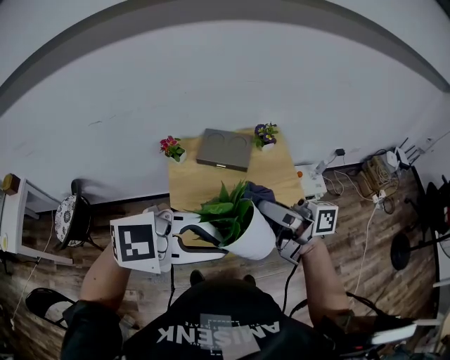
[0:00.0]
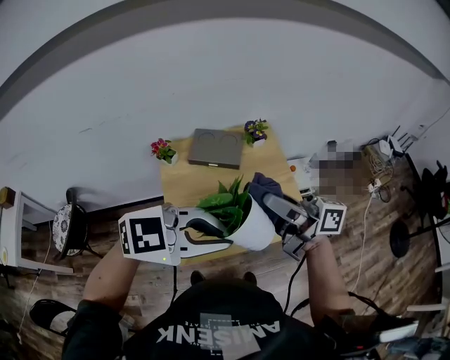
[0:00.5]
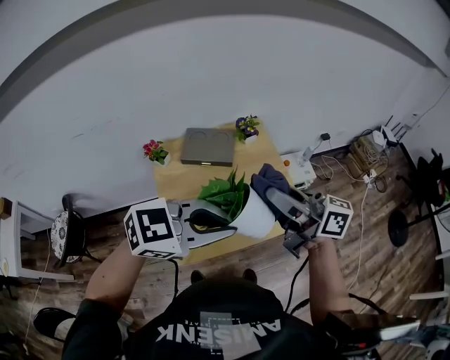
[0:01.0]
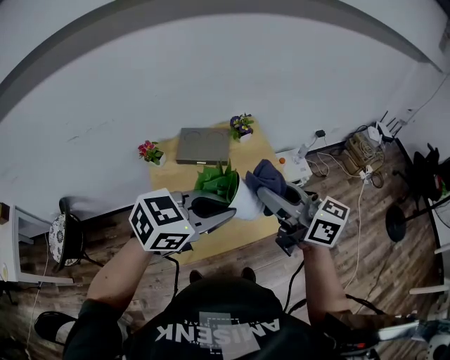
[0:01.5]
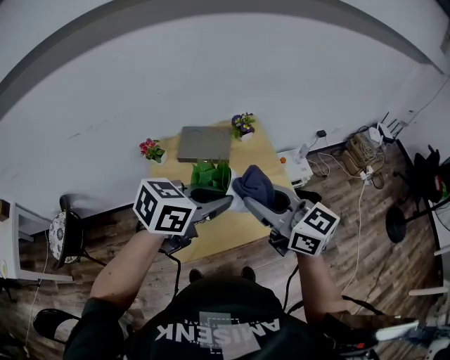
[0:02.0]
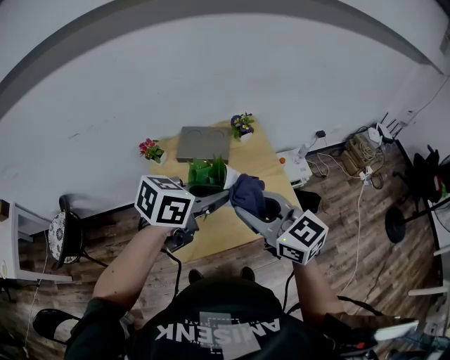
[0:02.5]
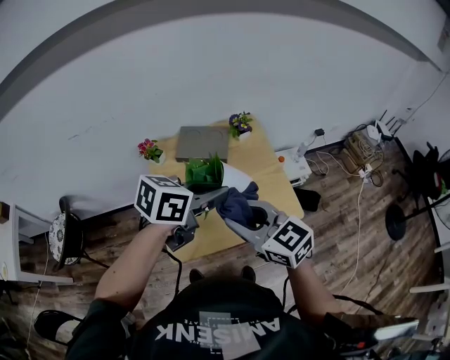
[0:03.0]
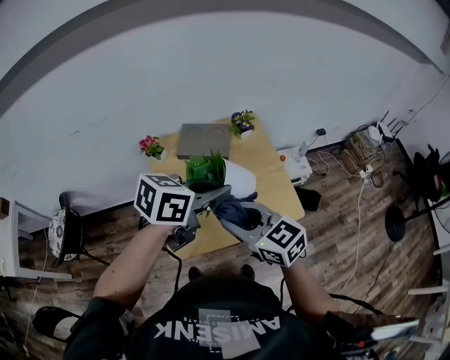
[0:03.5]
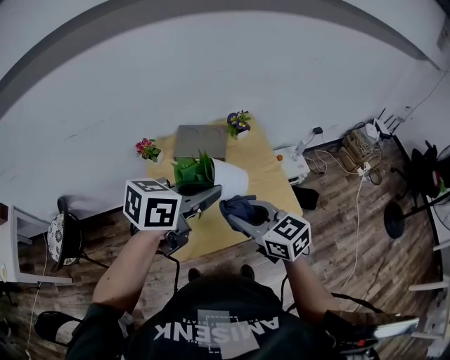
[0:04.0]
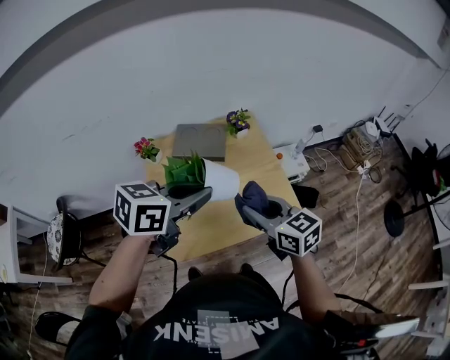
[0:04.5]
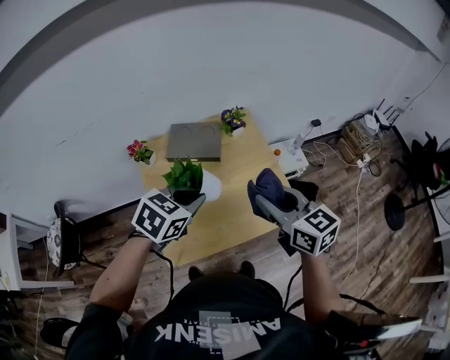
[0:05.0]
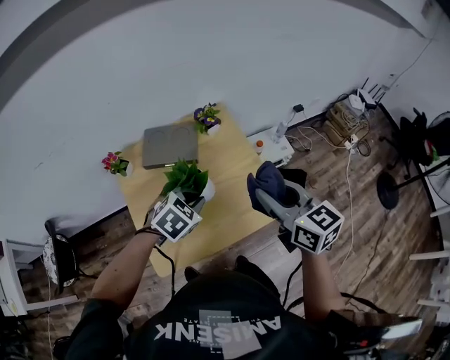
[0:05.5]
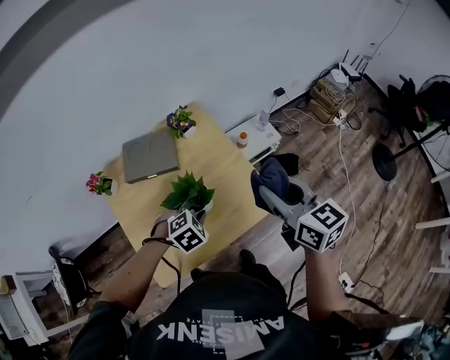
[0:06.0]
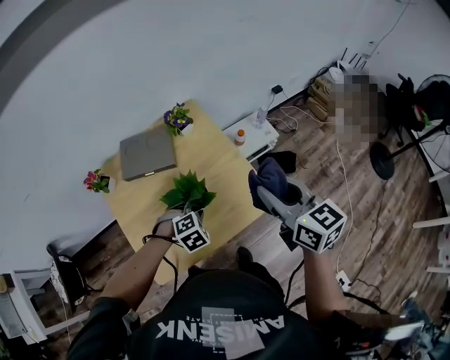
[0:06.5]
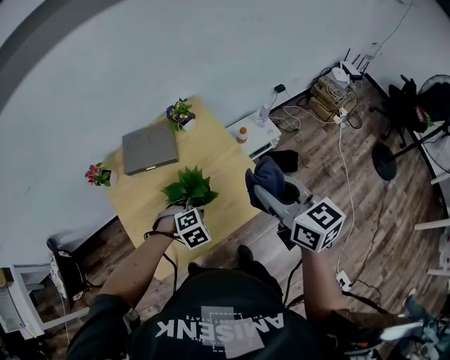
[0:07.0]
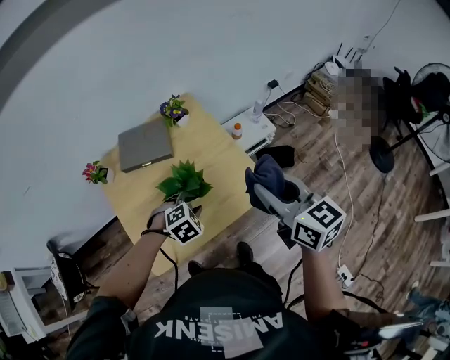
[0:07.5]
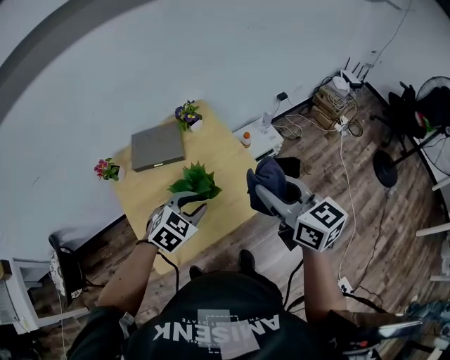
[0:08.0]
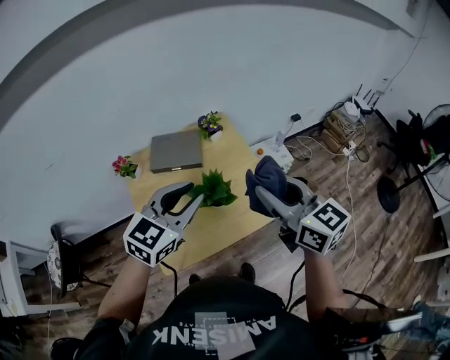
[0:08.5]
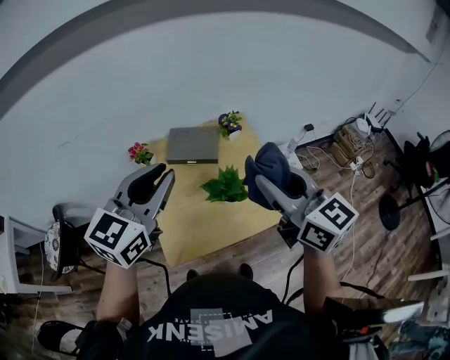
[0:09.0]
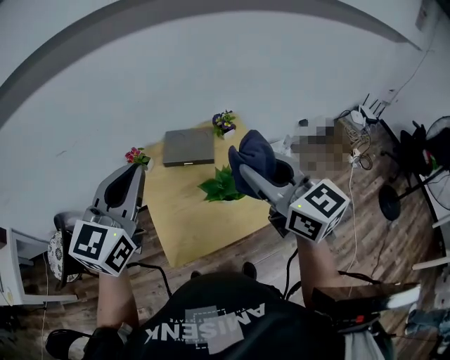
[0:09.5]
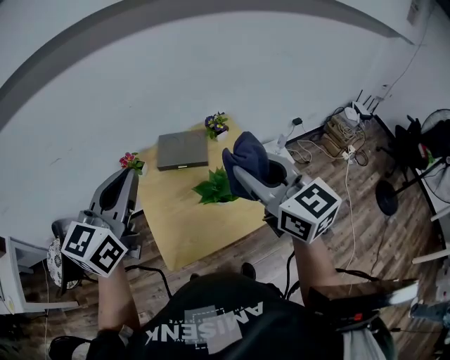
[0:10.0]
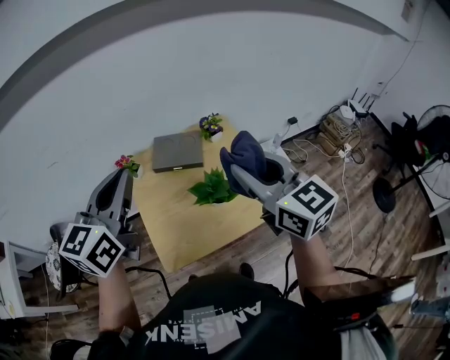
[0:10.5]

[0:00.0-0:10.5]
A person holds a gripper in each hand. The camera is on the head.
0:00.0 to 0:02.0: The right gripper turns by approximately 60 degrees. Meanwhile the left gripper moves about 15 cm, and twists some 40 degrees counterclockwise, seen from behind.
0:02.0 to 0:04.0: The right gripper heads downward, covering about 10 cm.
0:04.0 to 0:06.5: The right gripper moves to the right and forward, some 25 cm, and swivels roughly 30 degrees. Meanwhile the left gripper travels downward by approximately 30 cm, and points its fingers some 50 degrees further downward.
0:06.5 to 0:08.5: The right gripper is displaced upward, to the left and backward by approximately 15 cm; the left gripper travels upward by approximately 30 cm, angles its fingers upward, by some 50 degrees, and opens its fingers.
0:08.5 to 0:10.5: The left gripper travels to the left and upward by about 20 cm, swivels about 30 degrees, and closes its fingers, while the right gripper moves upward and to the left, approximately 10 cm.

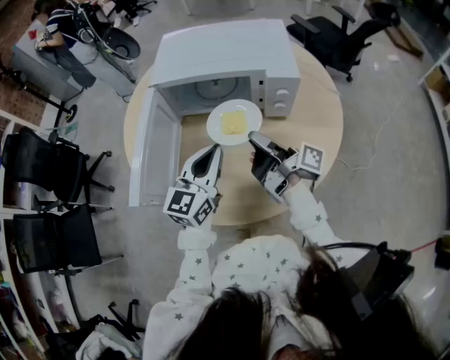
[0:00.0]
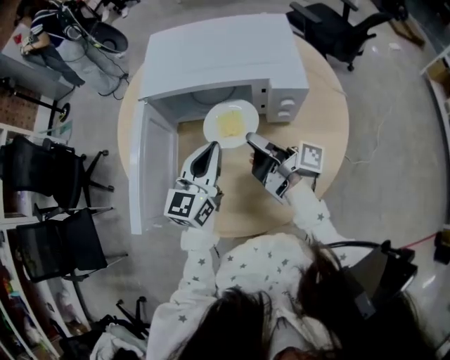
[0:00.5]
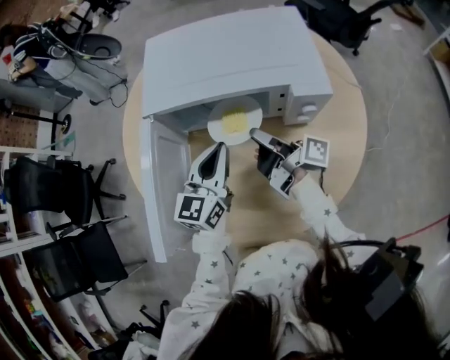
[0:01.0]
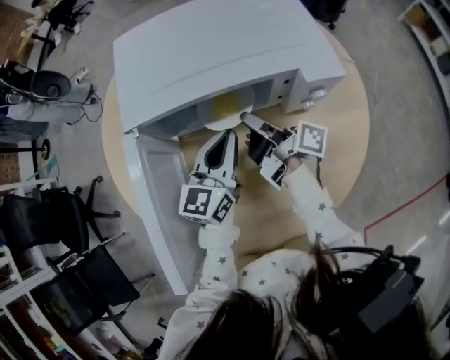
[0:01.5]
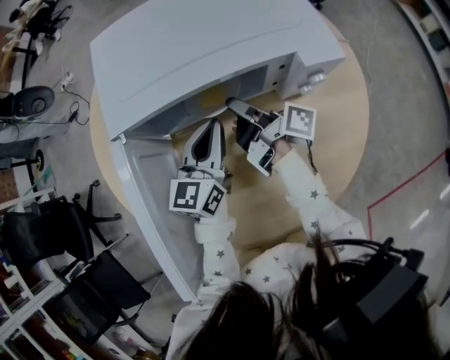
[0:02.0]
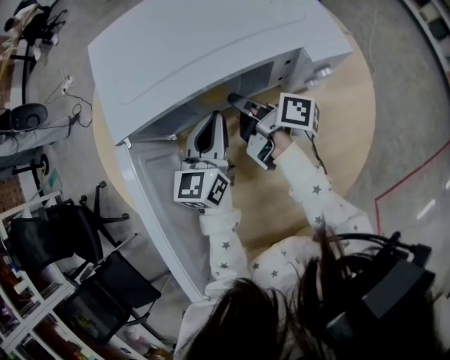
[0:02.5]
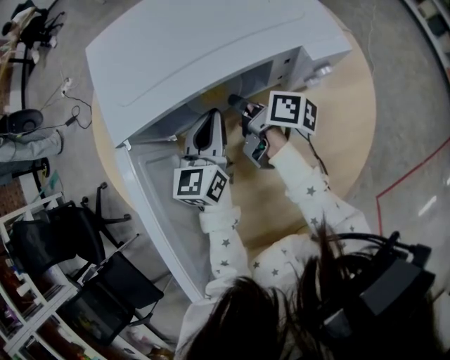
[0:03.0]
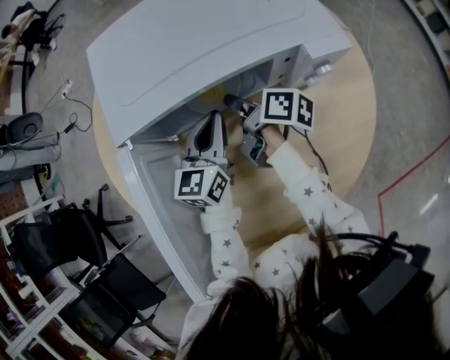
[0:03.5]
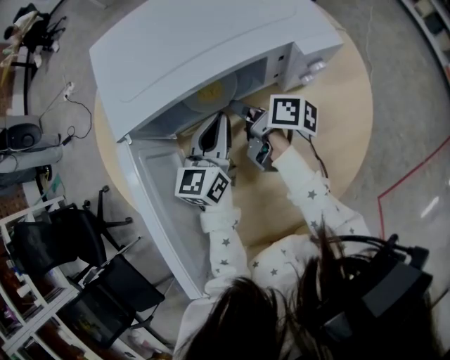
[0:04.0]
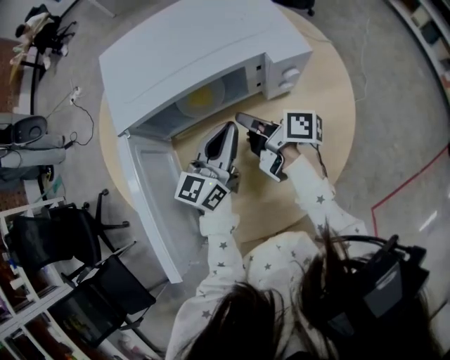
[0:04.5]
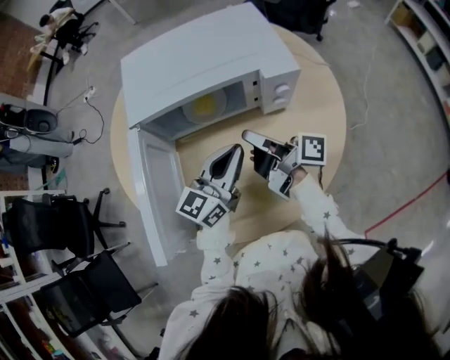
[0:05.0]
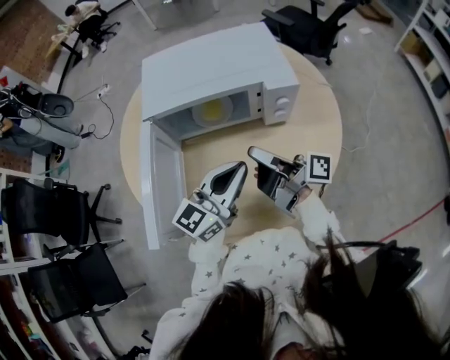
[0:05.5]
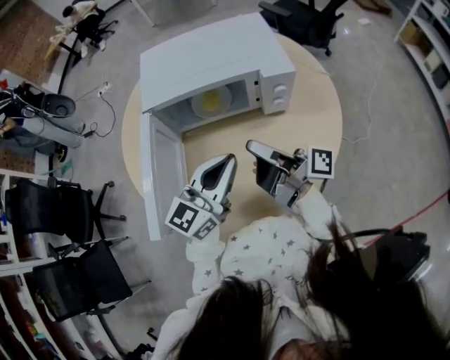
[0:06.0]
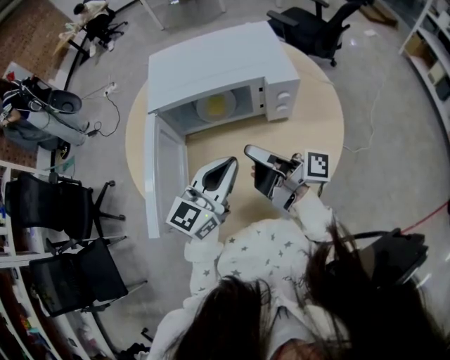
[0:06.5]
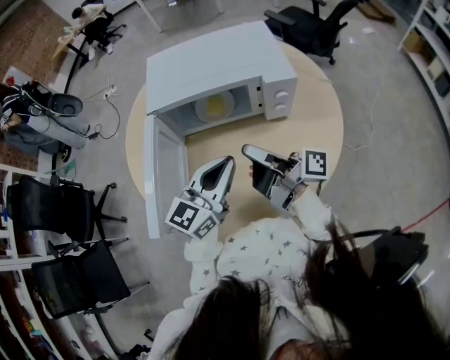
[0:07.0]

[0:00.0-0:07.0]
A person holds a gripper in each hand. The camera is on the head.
0:00.0 to 0:02.0: The left gripper moves approximately 20 cm.
0:03.5 to 0:05.0: The left gripper shifts by some 15 cm.
0:05.0 to 0:07.0: The left gripper changes place by about 10 cm.

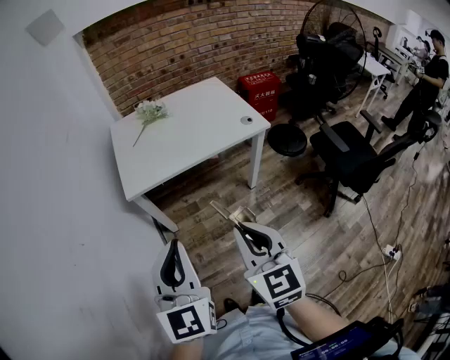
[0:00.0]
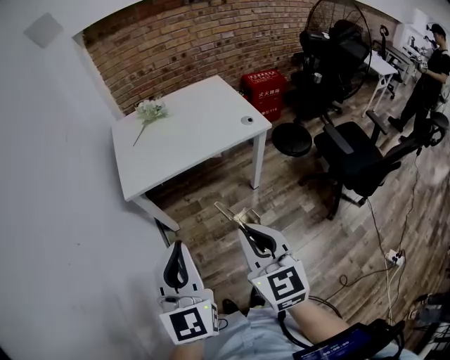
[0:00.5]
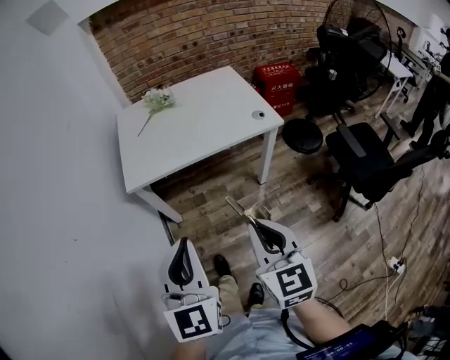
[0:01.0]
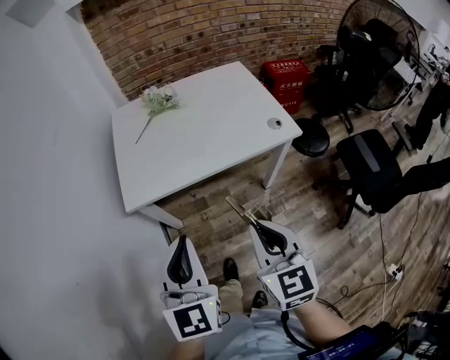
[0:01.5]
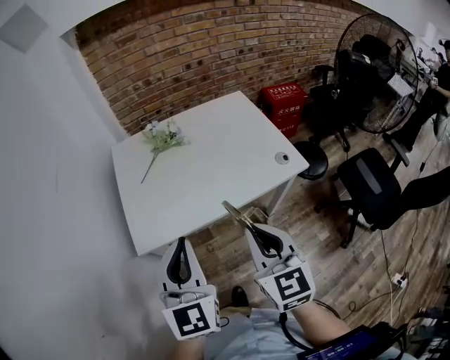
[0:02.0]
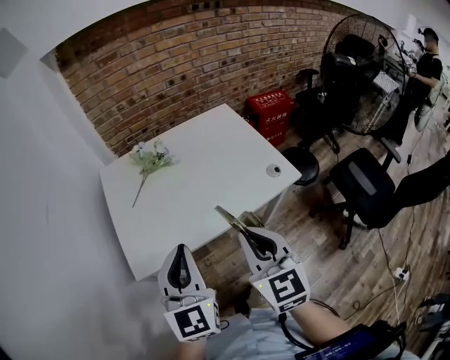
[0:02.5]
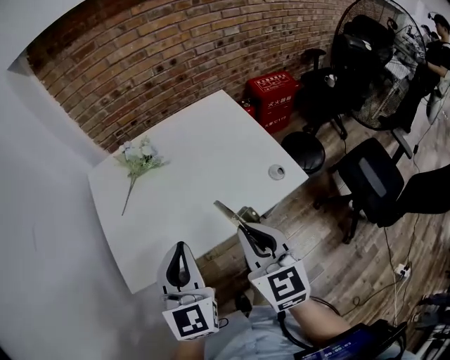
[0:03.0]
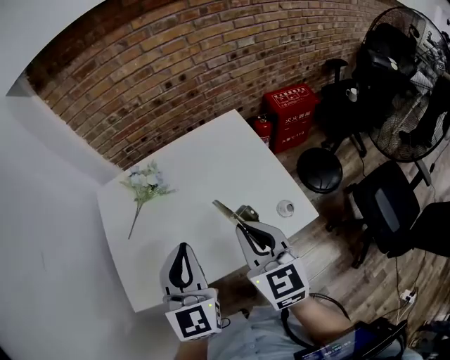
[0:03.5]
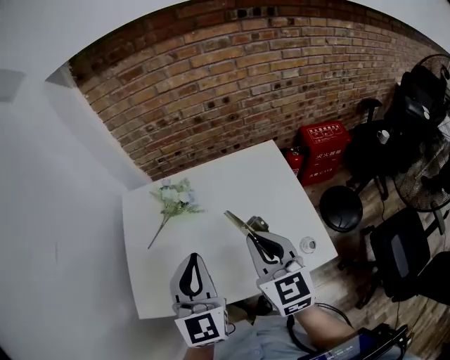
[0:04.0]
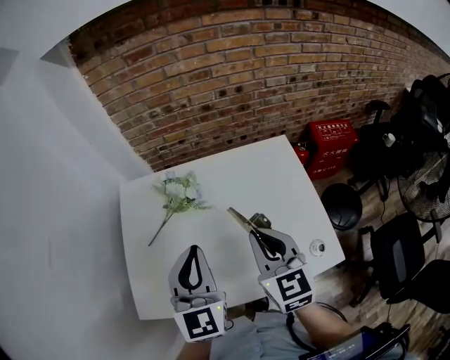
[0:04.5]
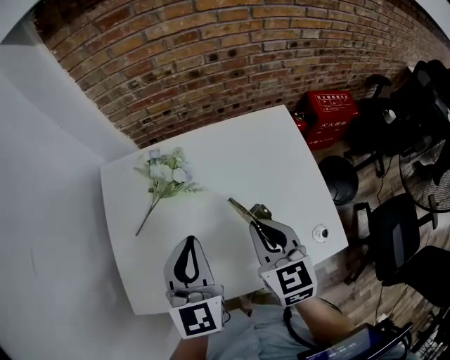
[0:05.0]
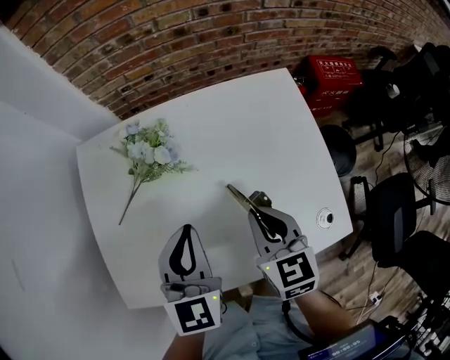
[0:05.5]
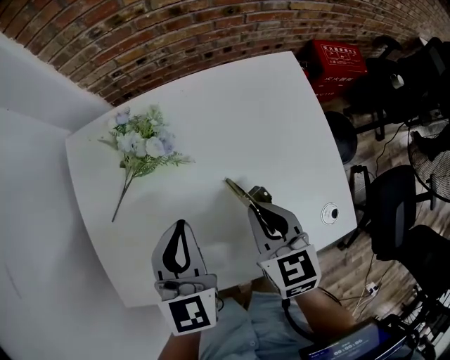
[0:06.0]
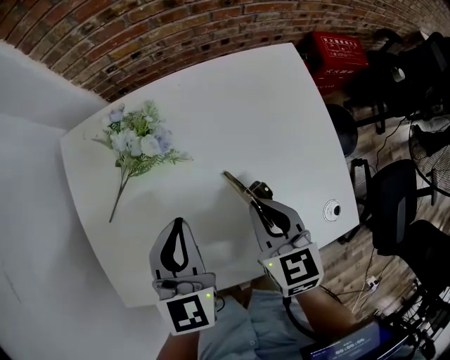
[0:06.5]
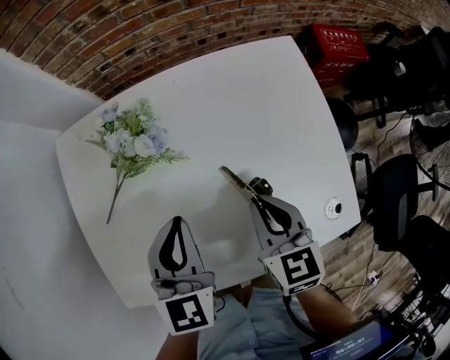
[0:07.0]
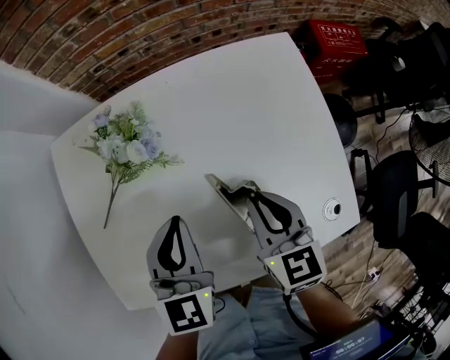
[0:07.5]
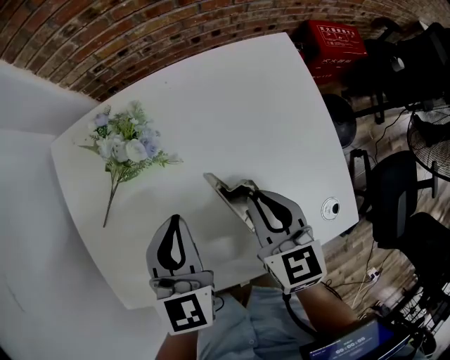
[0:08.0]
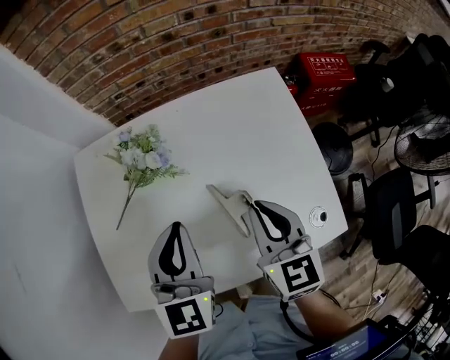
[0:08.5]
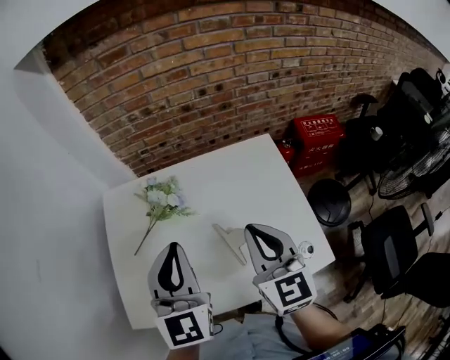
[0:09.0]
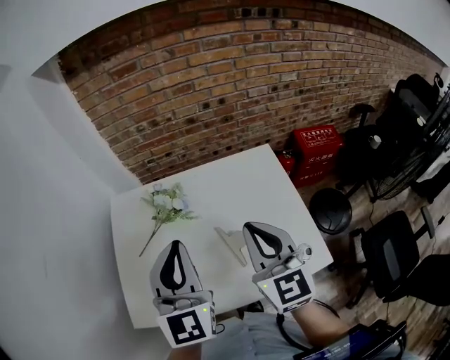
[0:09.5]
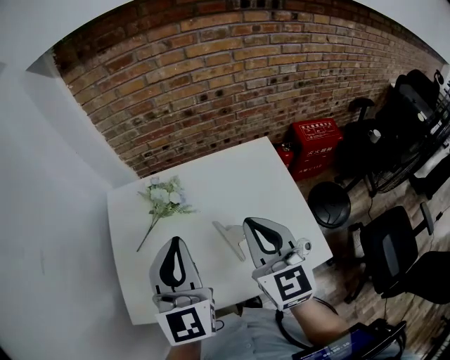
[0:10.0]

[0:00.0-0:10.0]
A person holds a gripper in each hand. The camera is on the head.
0:00.0 to 0:02.0: The two grippers go roughly 30 cm forward.
0:02.0 to 0:04.0: The left gripper heads forward and to the right, covering some 30 cm; the right gripper is displaced forward by about 30 cm.
0:04.0 to 0:06.0: The grippers both shift downward and forward by roughly 20 cm. The right gripper swivels some 30 degrees; the left gripper turns by approximately 20 degrees.
0:06.0 to 0:08.0: The grippers make only small movements.
0:08.0 to 0:10.0: The two grippers go some 20 cm upward. The left gripper rotates approximately 30 degrees. The right gripper rotates approximately 30 degrees.
